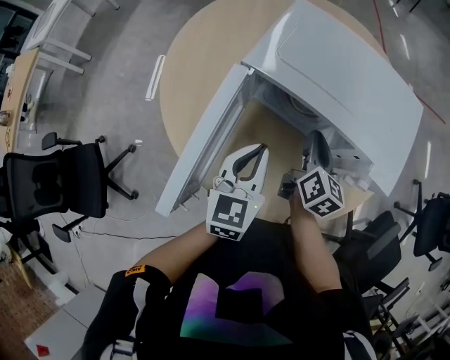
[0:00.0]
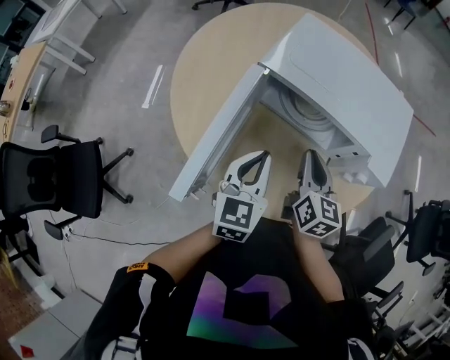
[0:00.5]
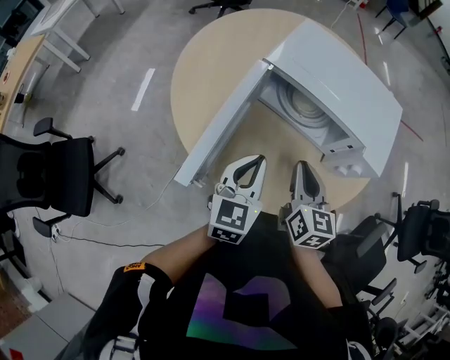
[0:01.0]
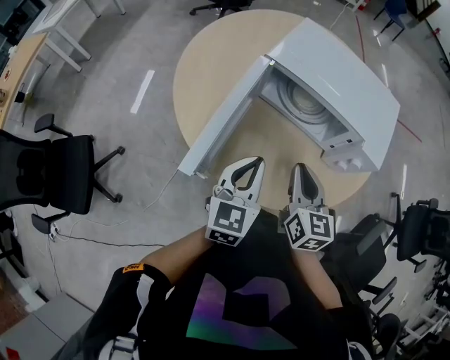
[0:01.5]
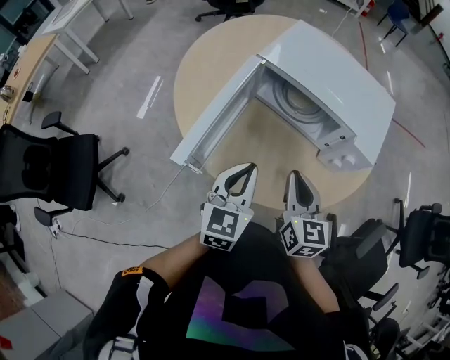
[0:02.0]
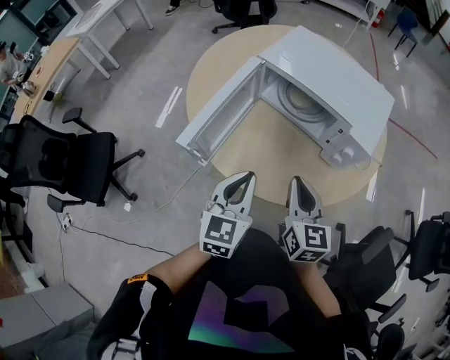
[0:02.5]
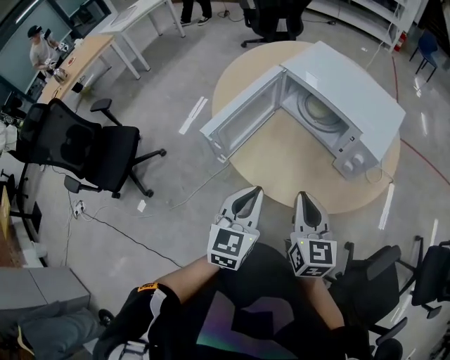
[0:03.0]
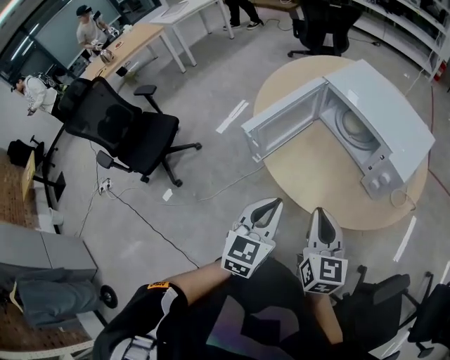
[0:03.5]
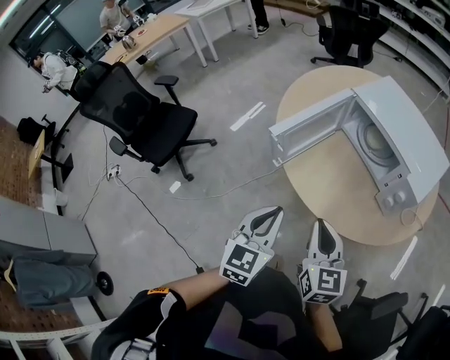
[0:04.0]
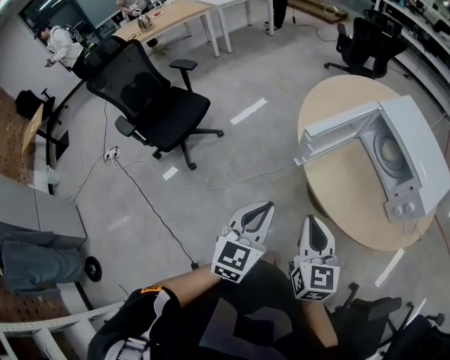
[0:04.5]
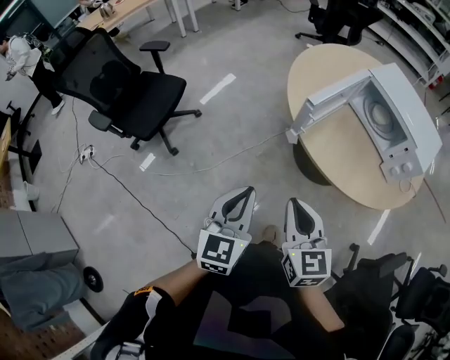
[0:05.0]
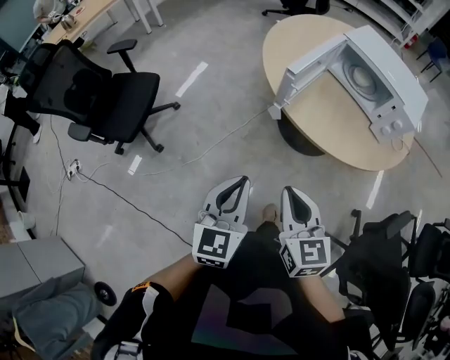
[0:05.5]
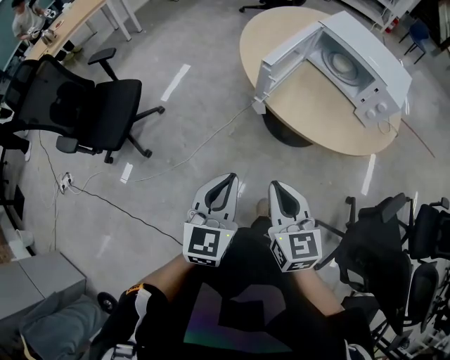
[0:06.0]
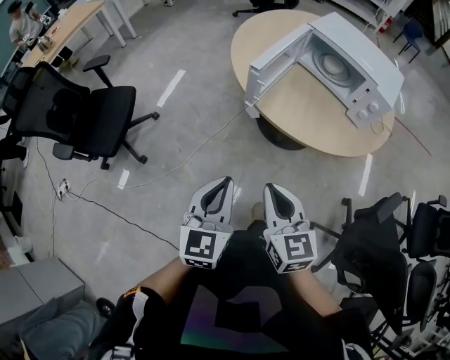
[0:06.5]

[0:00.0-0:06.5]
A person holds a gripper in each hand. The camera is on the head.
0:00.0 to 0:02.0: The grippers both shift backward by approximately 20 cm. The right gripper turns by roughly 30 degrees.
0:02.0 to 0:04.5: The left gripper ends up about 30 cm from where it was, and swivels approximately 30 degrees. Meanwhile the right gripper changes place by roughly 30 cm, and changes its angle by about 30 degrees.
0:04.5 to 0:06.5: Both grippers move backward and to the left, some 10 cm.

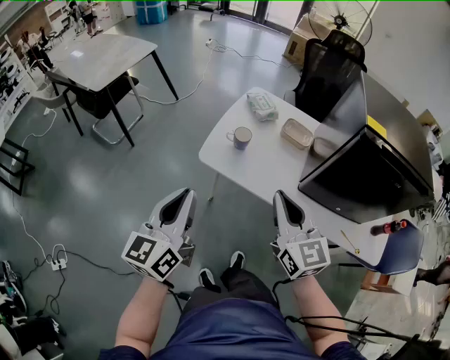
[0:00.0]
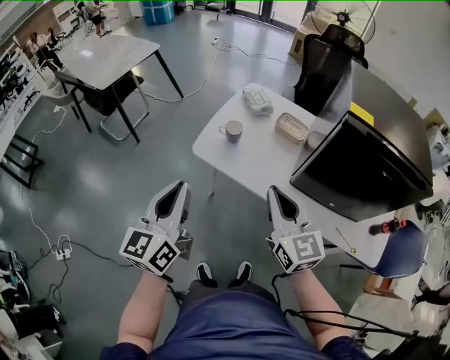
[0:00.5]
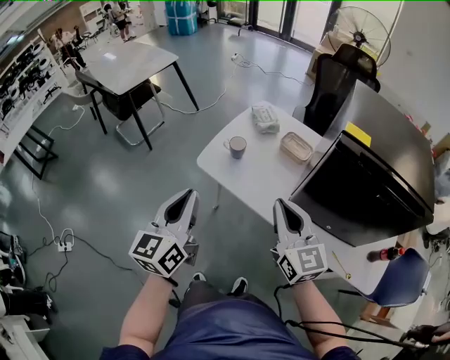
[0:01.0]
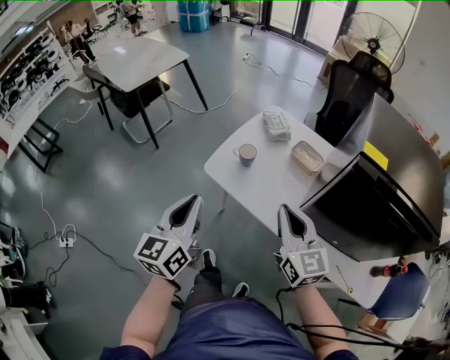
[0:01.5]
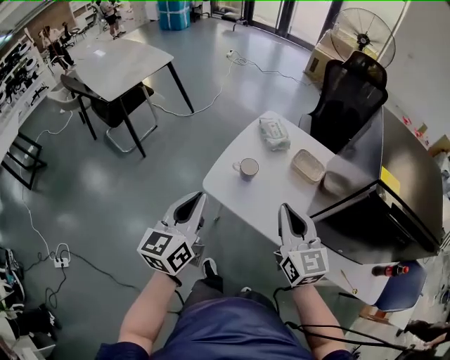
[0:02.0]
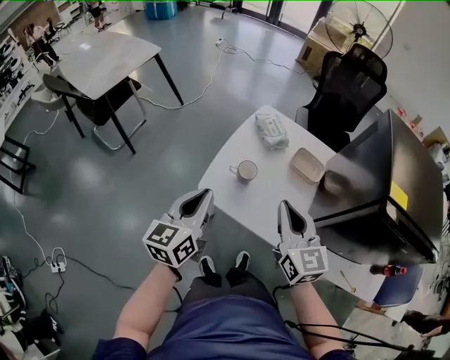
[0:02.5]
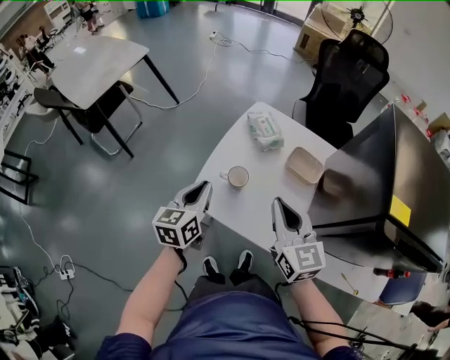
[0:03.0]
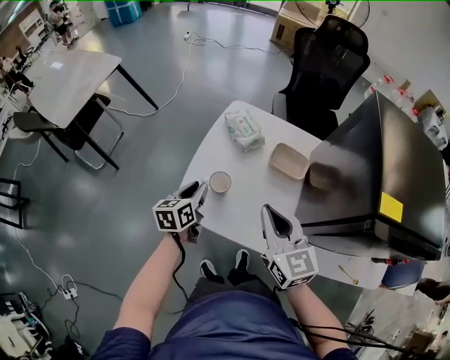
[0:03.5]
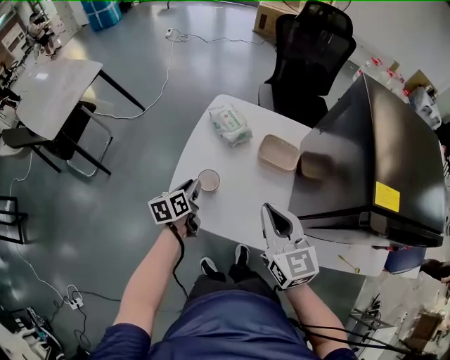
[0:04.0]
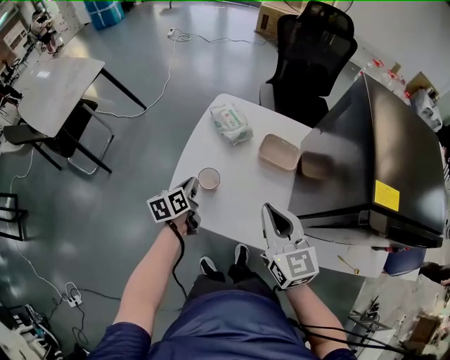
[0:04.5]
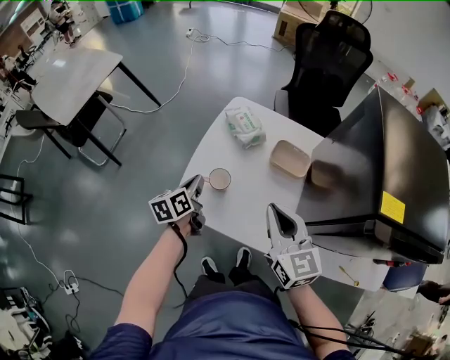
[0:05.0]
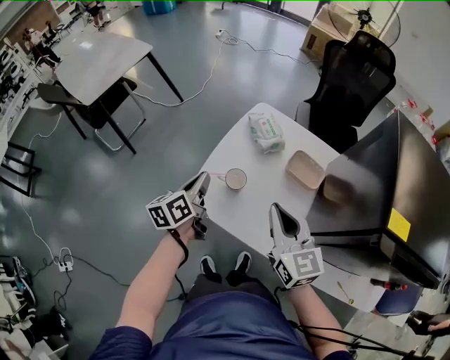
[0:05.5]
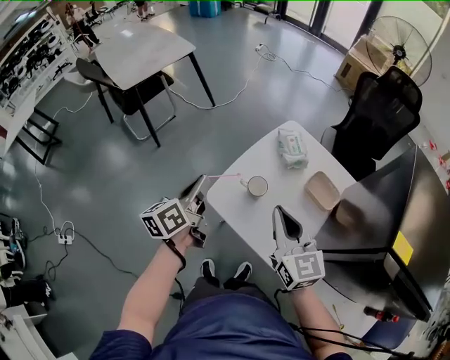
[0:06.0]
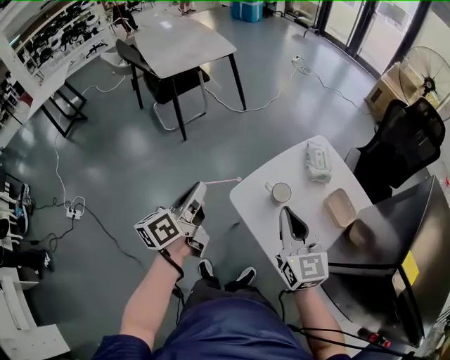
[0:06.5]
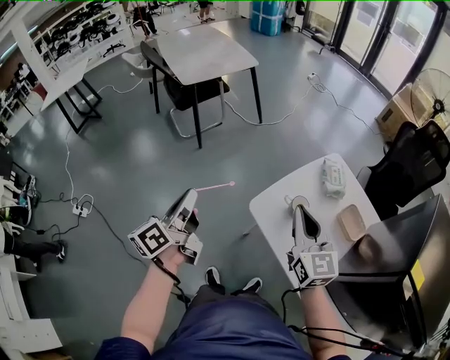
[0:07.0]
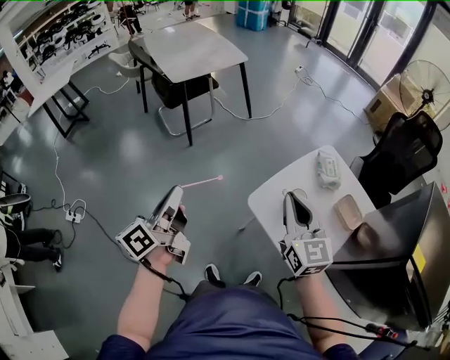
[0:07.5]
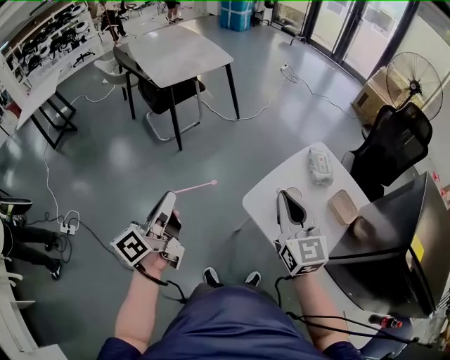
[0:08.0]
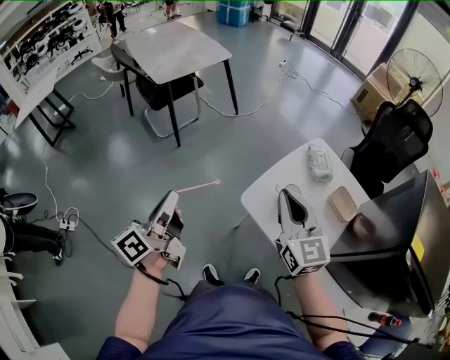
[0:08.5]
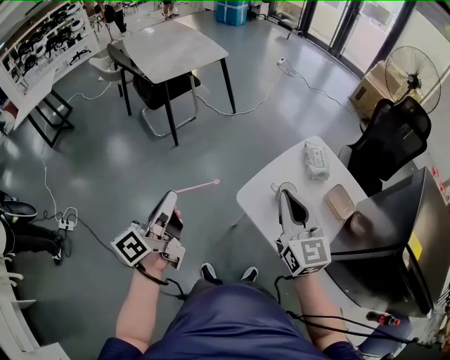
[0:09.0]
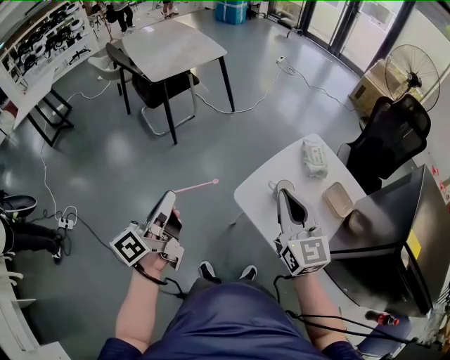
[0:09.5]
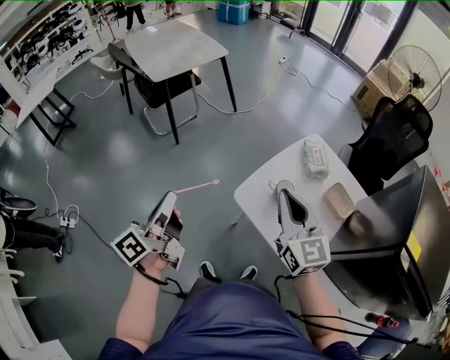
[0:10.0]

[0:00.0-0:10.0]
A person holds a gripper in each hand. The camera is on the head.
0:00.0 to 0:02.0: The right gripper moves forward and to the right, roughly 10 cm. Meanwhile the left gripper heads forward, covering approximately 10 cm.
0:02.0 to 0:04.0: The right gripper moves forward, approximately 10 cm. Meanwhile the left gripper goes approximately 35 cm downward and forward, changes its angle by approximately 40 degrees, and opens its fingers.
0:04.0 to 0:06.0: The right gripper shifts approximately 10 cm to the left, and changes its angle by roughly 20 degrees. Meanwhile the left gripper heads upward, to the left and backward, covering about 25 cm, changes its angle by some 30 degrees, and closes.
0:06.0 to 0:08.0: The right gripper travels to the left by approximately 15 cm. Meanwhile the left gripper goes approximately 25 cm to the left, and turns by some 20 degrees.
0:08.0 to 0:10.0: There are only small adjustments of the grippers.

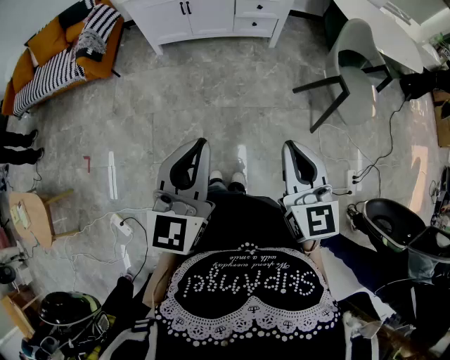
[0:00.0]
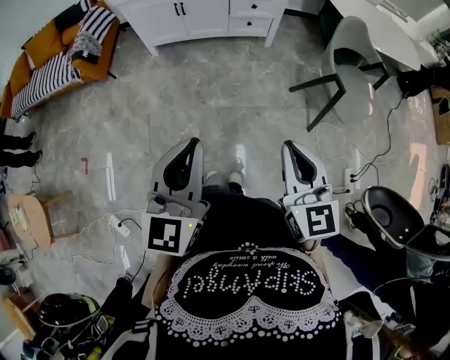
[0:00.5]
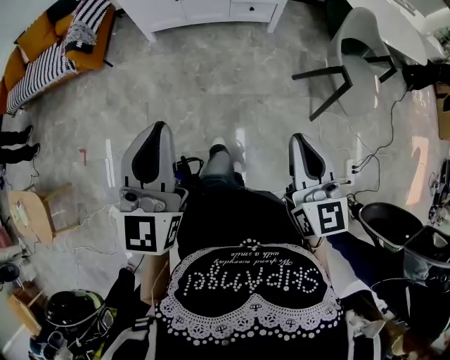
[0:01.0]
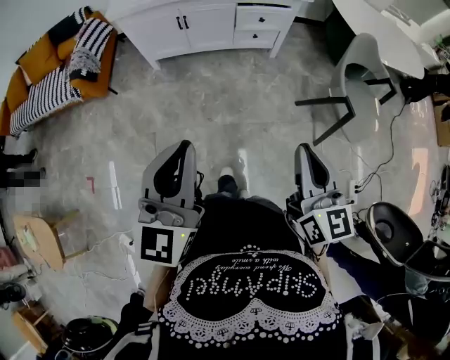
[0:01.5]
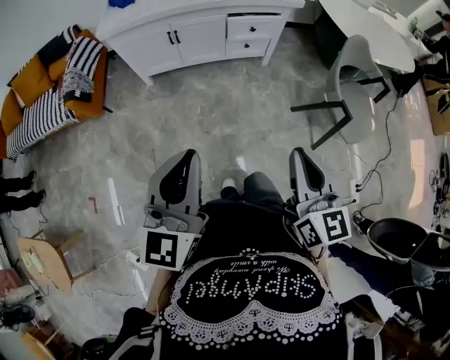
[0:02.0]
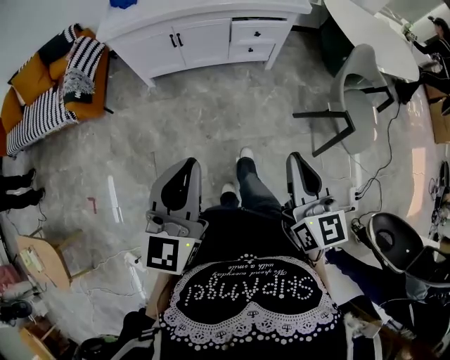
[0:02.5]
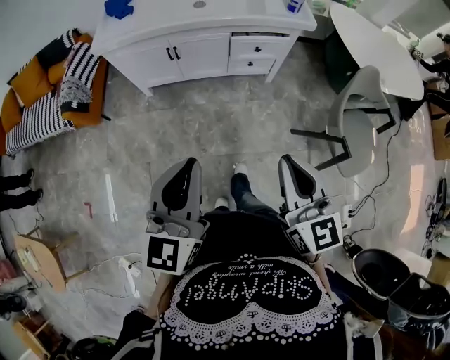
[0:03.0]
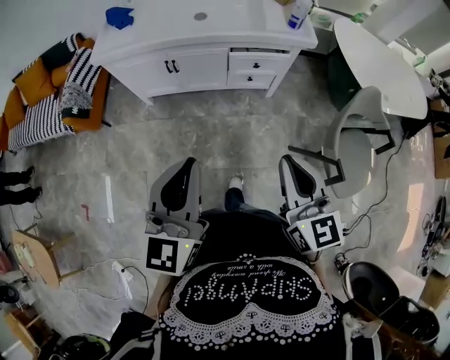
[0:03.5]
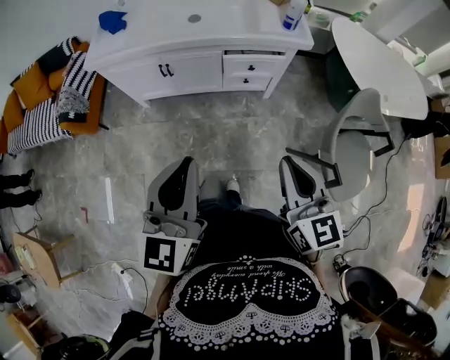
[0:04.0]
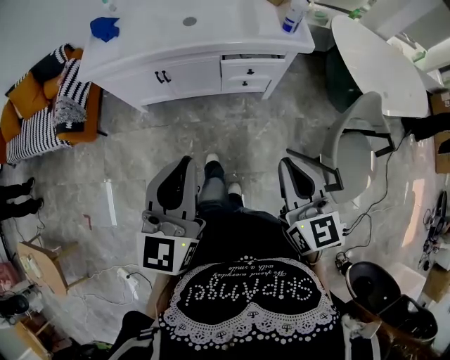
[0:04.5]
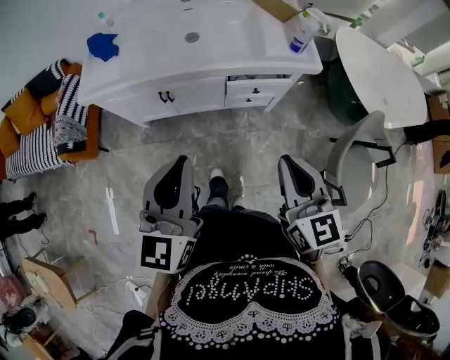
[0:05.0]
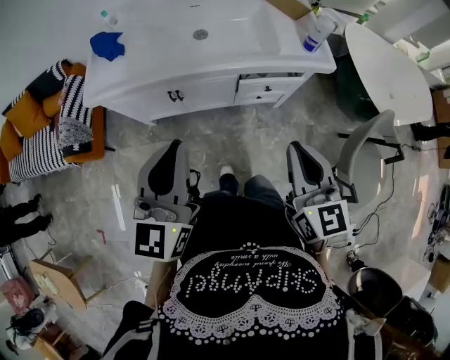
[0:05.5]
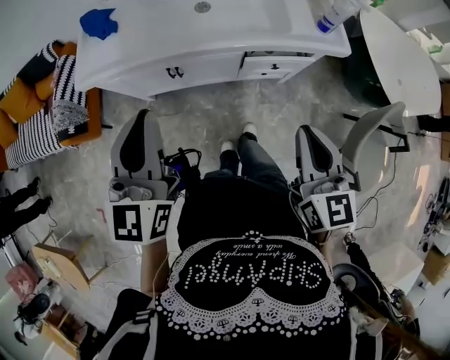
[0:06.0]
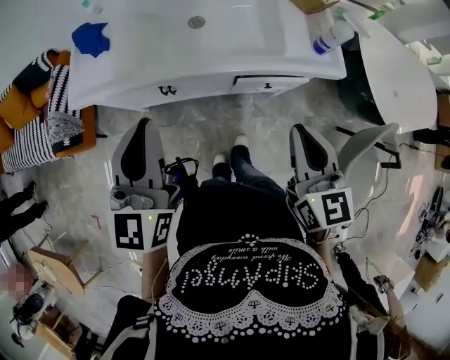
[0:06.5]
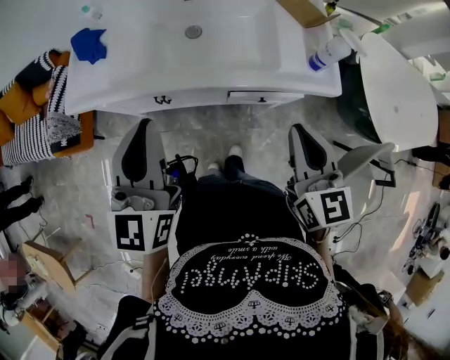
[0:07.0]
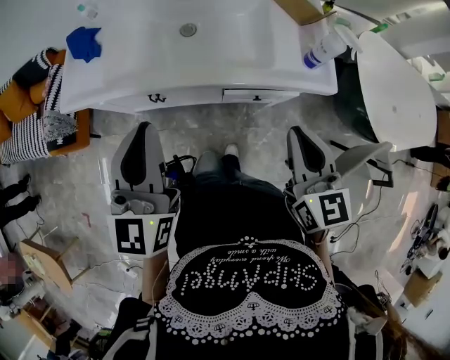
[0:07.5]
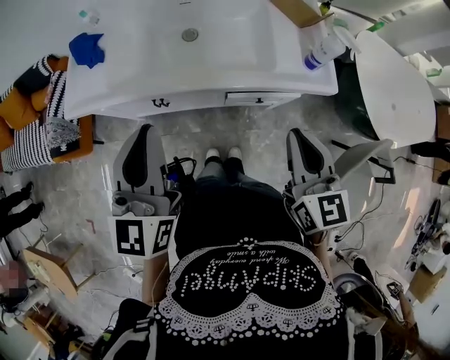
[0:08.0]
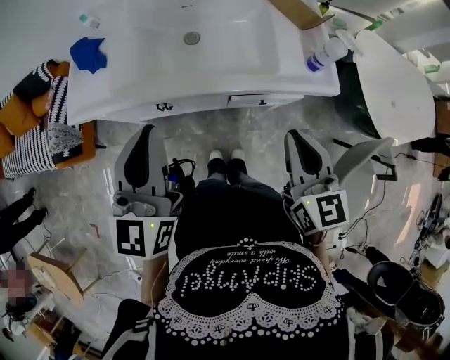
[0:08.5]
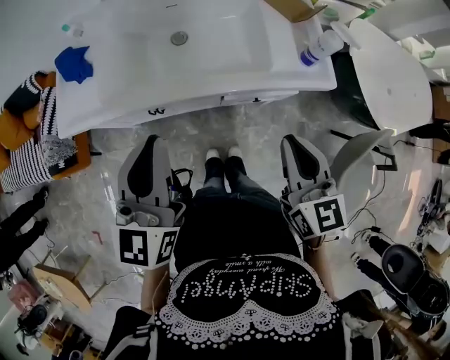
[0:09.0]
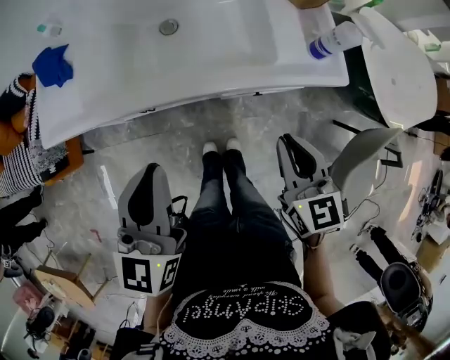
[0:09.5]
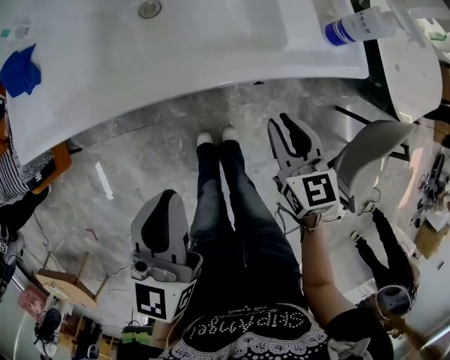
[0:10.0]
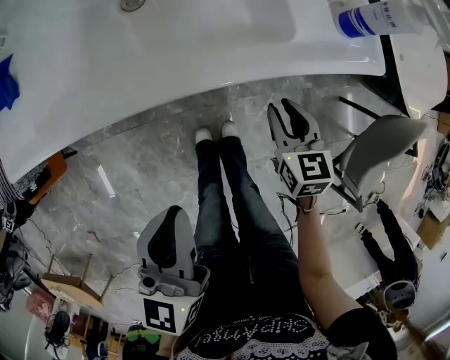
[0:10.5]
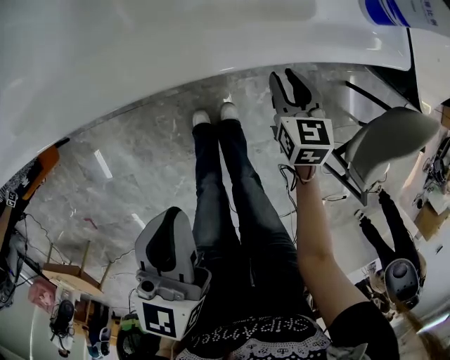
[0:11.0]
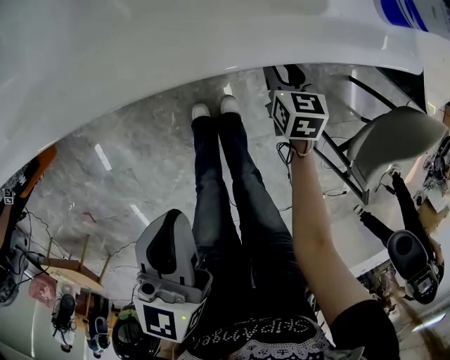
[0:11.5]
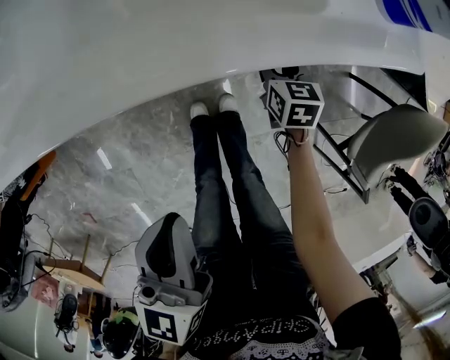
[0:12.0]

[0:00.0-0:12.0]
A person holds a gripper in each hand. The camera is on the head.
0:00.0 to 0:02.0: The grippers both shift forward by approximately 15 cm.
0:02.0 to 0:04.0: The right gripper travels forward by approximately 25 cm; the left gripper moves forward and to the right, some 25 cm.
0:04.0 to 0:06.0: The right gripper heads forward, covering approximately 20 cm; the left gripper heads forward and to the left, covering about 30 cm.
0:06.0 to 0:08.0: The two grippers go about 10 cm forward and to the right.
0:08.0 to 0:10.0: Both grippers move downward, about 20 cm. The left gripper turns by some 20 degrees.
0:10.0 to 0:12.0: The right gripper moves downward, roughly 25 cm, and swivels about 20 degrees; the left gripper moves downward, approximately 10 cm.
